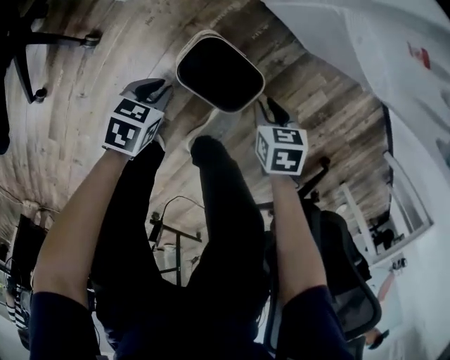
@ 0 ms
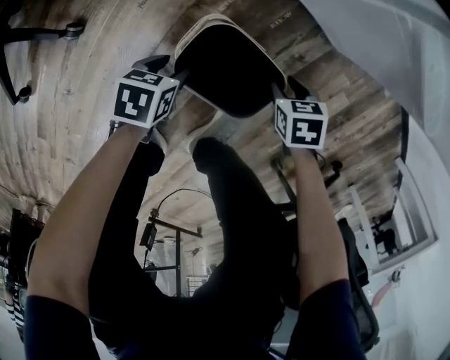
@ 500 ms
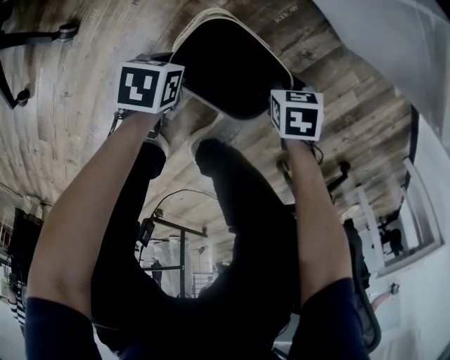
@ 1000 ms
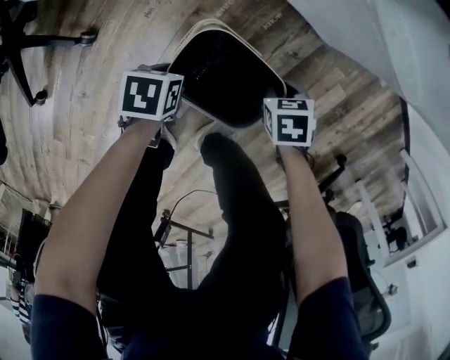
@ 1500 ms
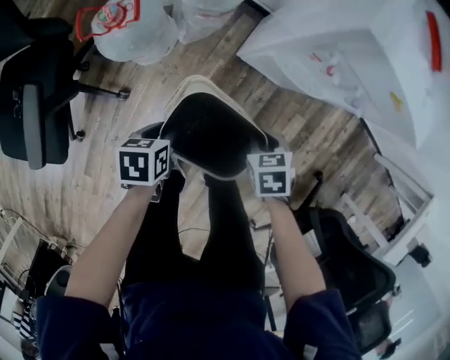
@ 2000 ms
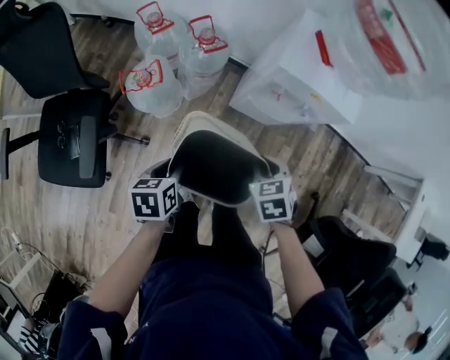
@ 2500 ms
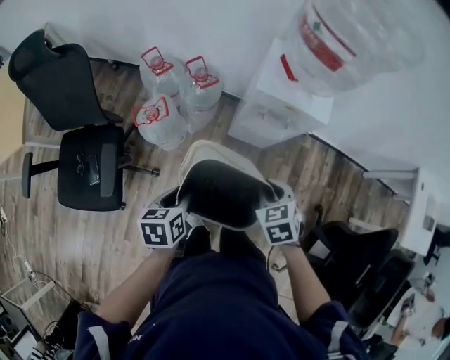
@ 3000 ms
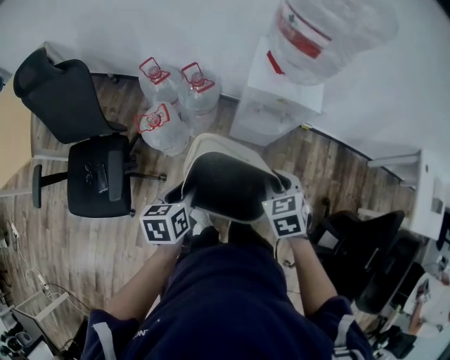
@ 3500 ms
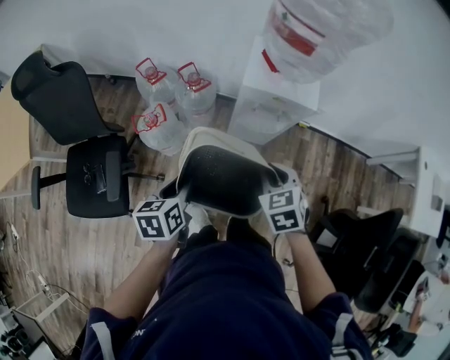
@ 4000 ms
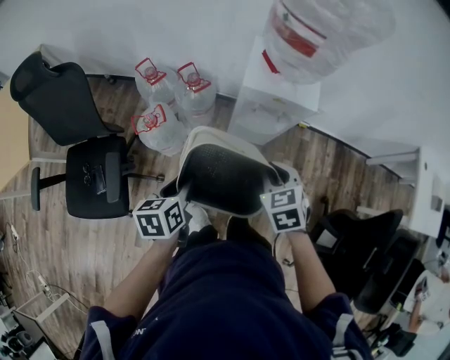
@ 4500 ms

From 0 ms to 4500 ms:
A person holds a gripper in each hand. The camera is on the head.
From 0 ms to 2000 ms: Both grippers move upward, about 25 cm. The left gripper opens, then closes once more.
From 2000 ms to 4500 ms: Both grippers move upward, about 40 cm. The left gripper changes its angle by approximately 20 degrees; the right gripper rotates some 20 degrees.

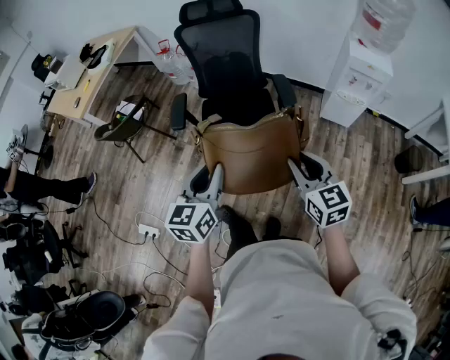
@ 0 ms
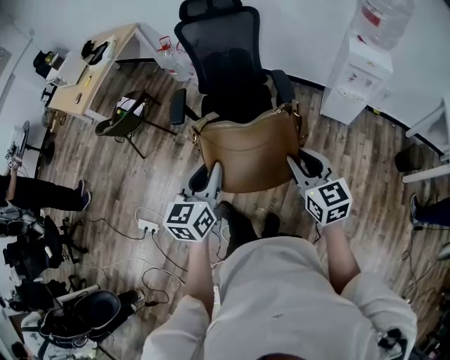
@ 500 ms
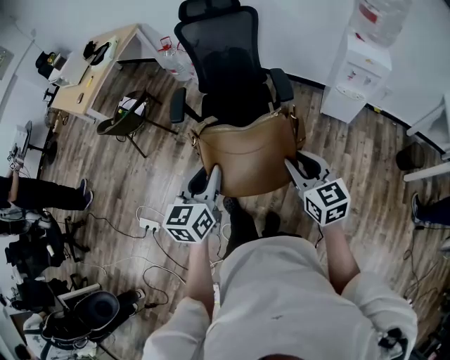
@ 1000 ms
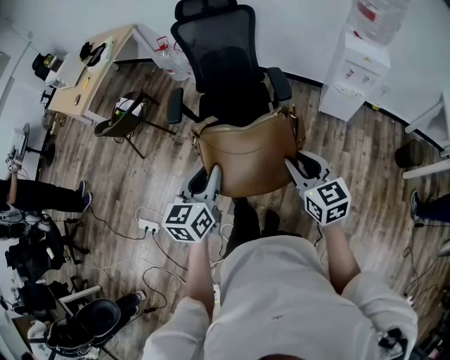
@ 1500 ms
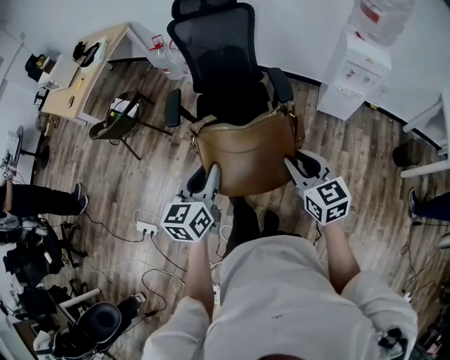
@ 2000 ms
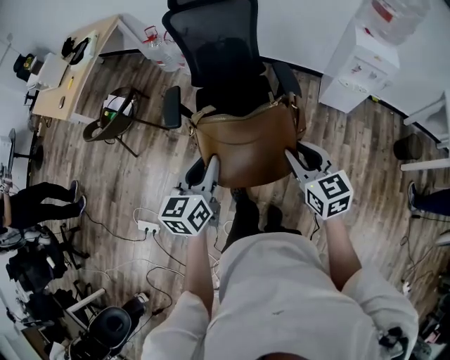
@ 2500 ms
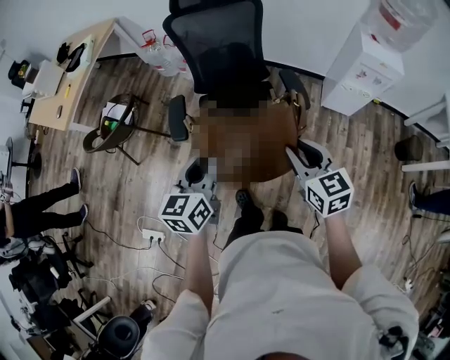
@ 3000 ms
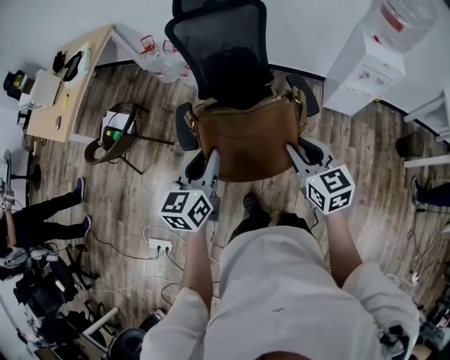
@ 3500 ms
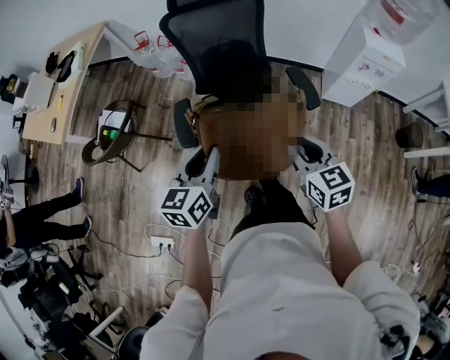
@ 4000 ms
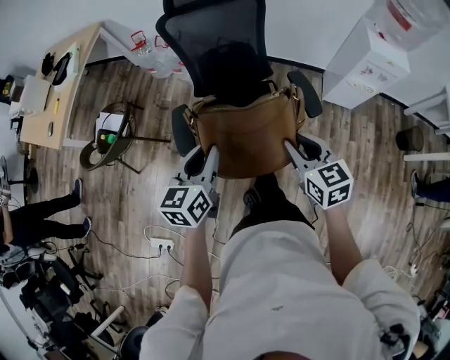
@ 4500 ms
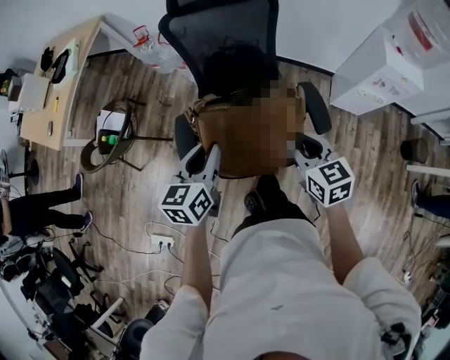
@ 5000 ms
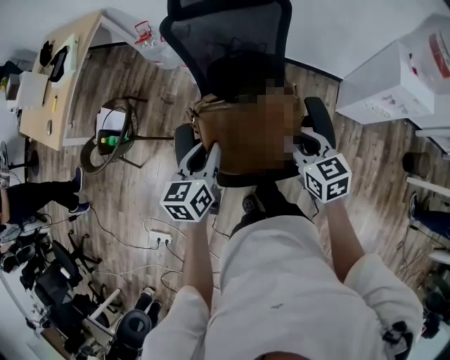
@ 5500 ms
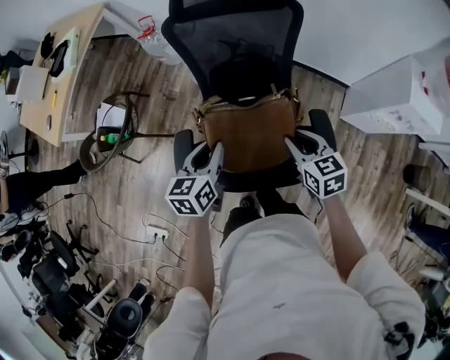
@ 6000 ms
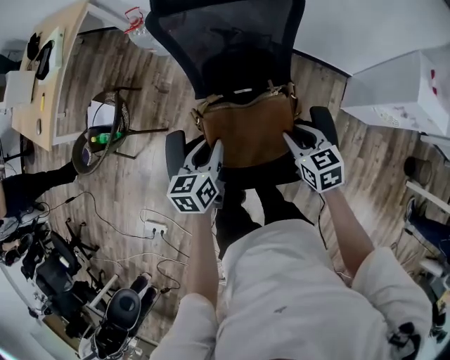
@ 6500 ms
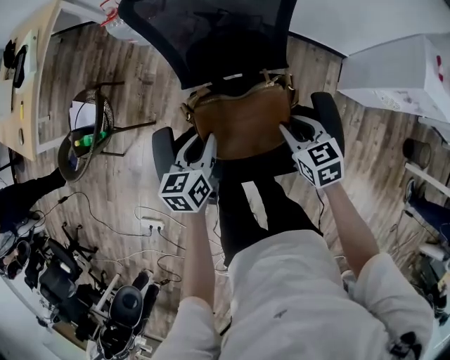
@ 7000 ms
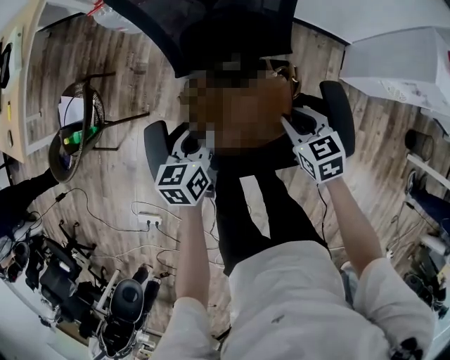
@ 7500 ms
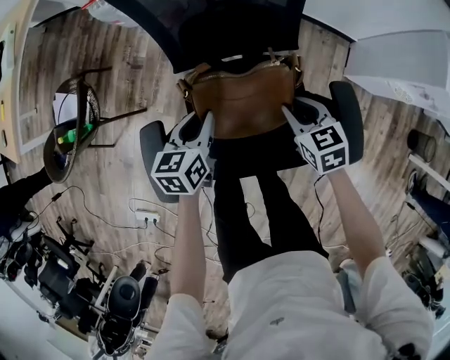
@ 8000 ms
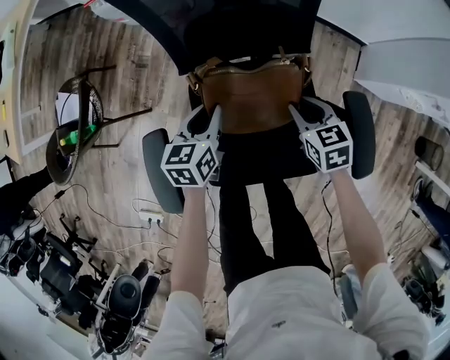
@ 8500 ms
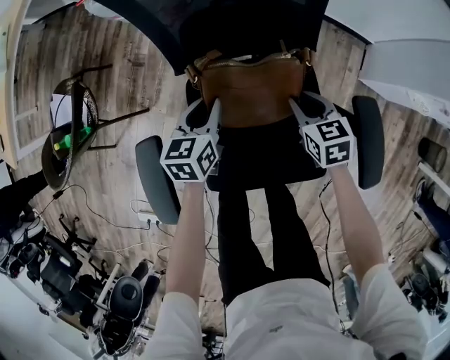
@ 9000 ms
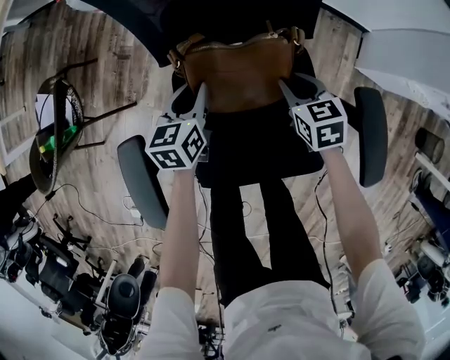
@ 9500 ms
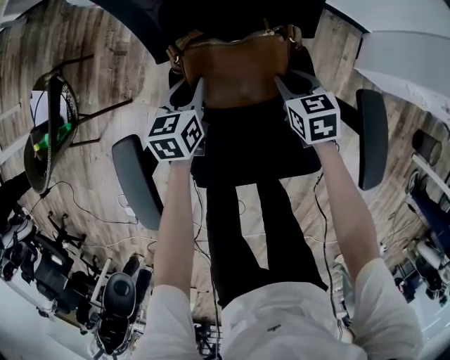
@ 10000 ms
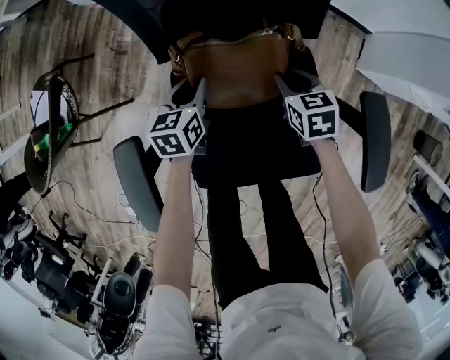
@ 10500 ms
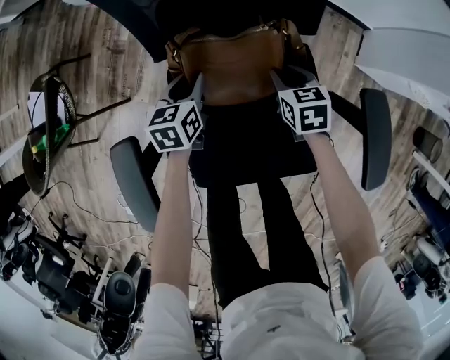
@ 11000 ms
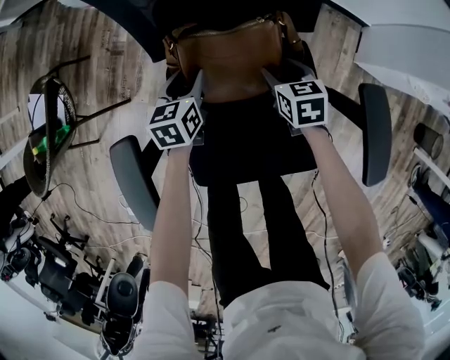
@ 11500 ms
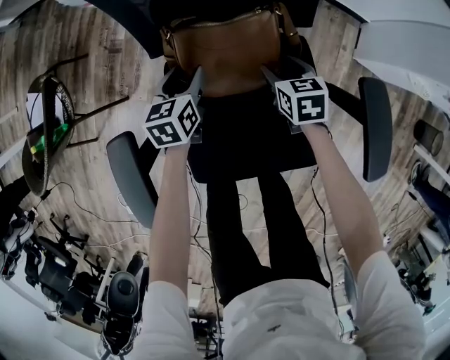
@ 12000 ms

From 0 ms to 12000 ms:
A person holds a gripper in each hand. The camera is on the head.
From 0 ms to 2000 ms: The grippers move only a little.
From 2000 ms to 4000 ms: Both grippers move forward and to the left, about 20 cm.
From 4000 ms to 6000 ms: The two grippers go approximately 25 cm forward.
From 6000 ms to 8000 ms: Both grippers travel together downward, about 20 cm.
From 8000 ms to 10000 ms: The grippers both shift downward and forward by some 15 cm.
From 10000 ms to 12000 ms: The right gripper opens. Meanwhile the left gripper opens up.

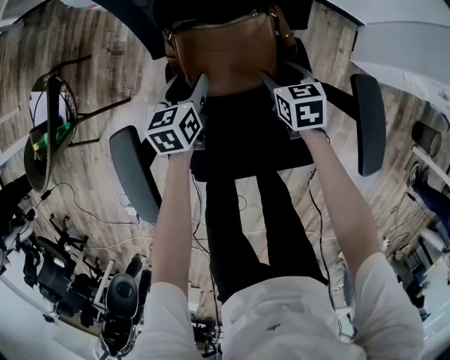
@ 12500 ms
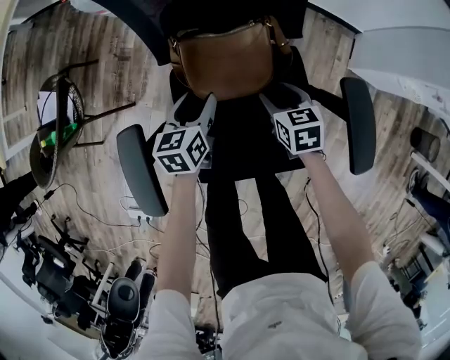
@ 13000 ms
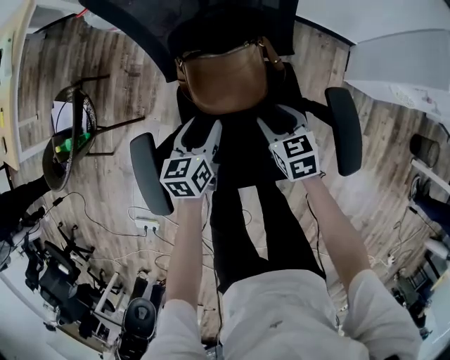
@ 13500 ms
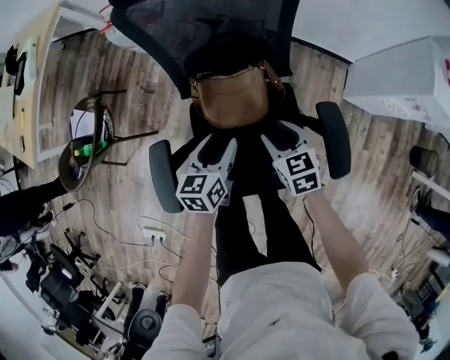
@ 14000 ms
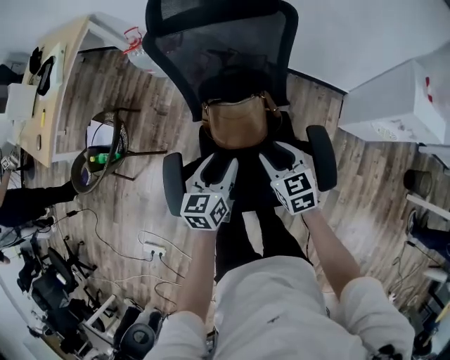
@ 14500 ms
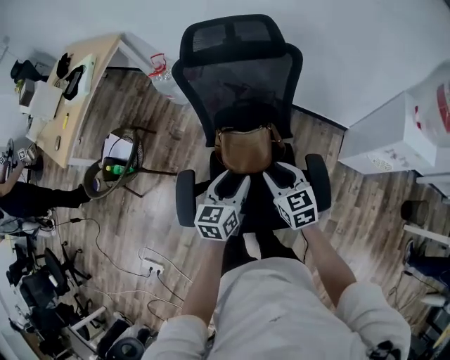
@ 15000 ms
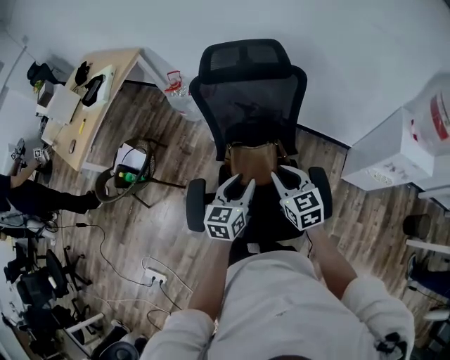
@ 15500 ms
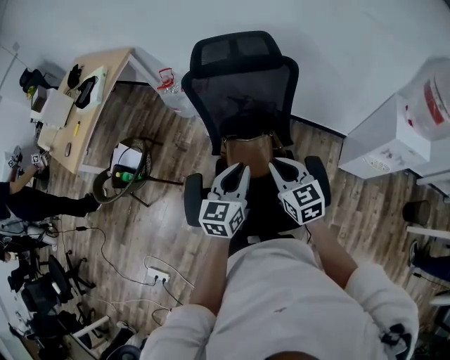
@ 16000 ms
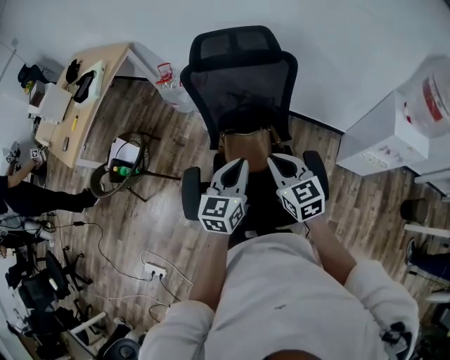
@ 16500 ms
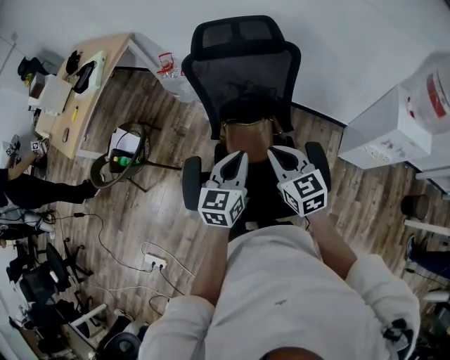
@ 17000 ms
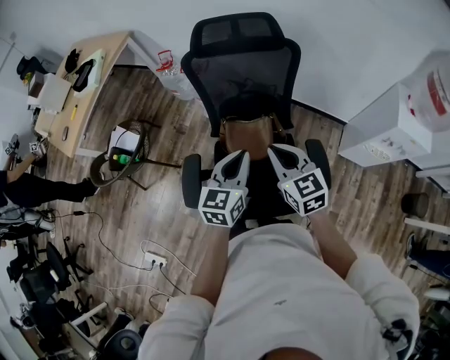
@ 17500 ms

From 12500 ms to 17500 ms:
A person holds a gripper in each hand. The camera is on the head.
From 12500 ms to 15000 ms: Both grippers travel together upward, roughly 35 cm. The right gripper changes its angle by about 30 degrees, and closes its fingers.
From 15000 ms to 17500 ms: The two grippers go roughly 10 cm upward. The right gripper closes, while the left gripper closes.

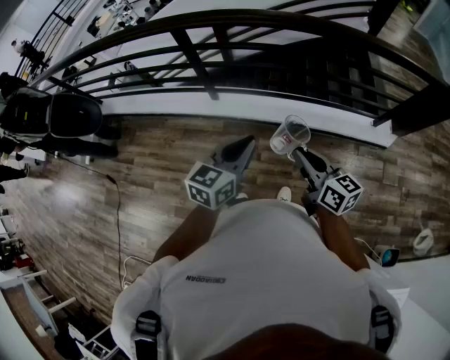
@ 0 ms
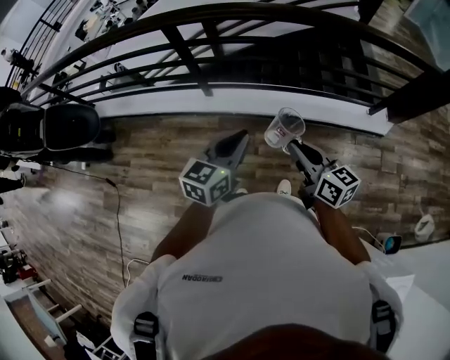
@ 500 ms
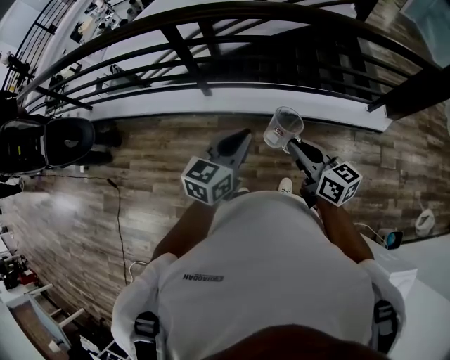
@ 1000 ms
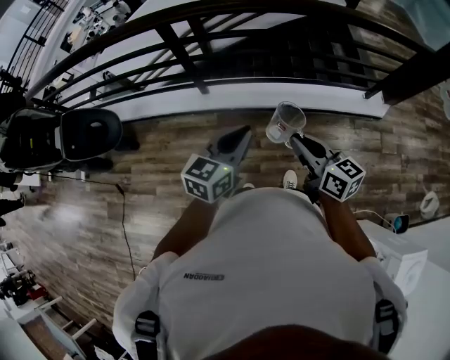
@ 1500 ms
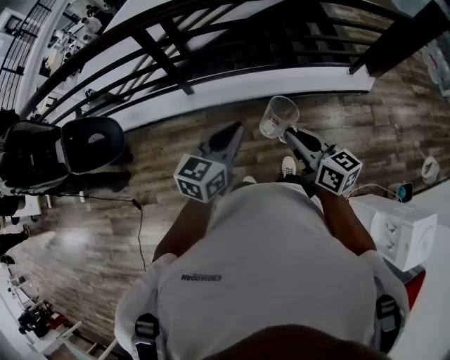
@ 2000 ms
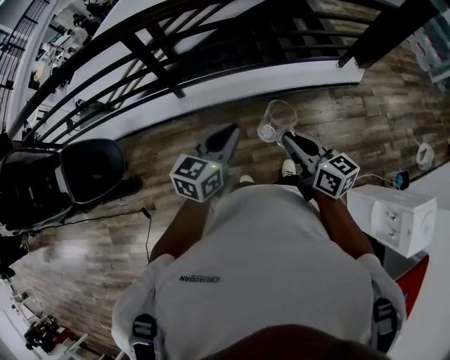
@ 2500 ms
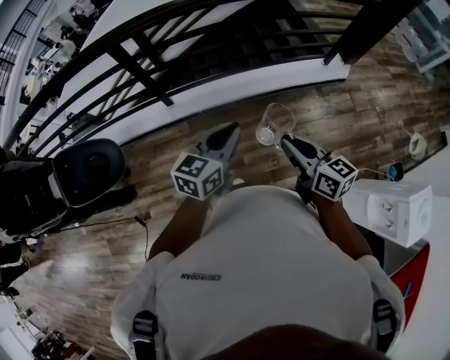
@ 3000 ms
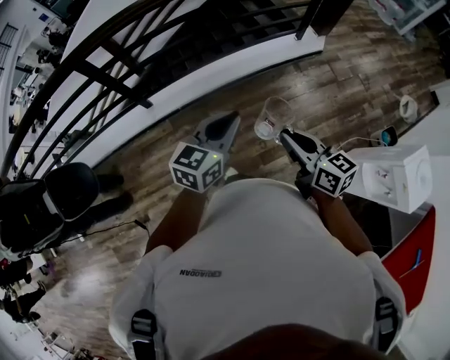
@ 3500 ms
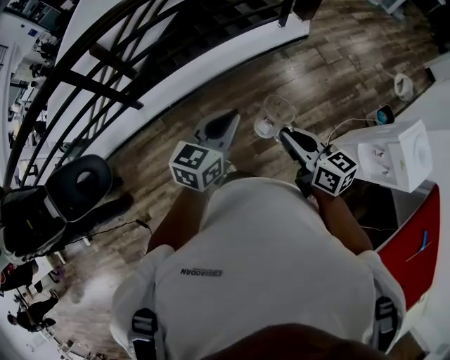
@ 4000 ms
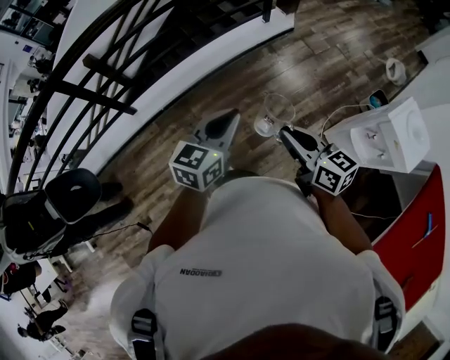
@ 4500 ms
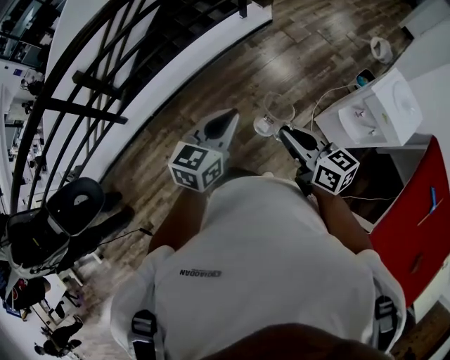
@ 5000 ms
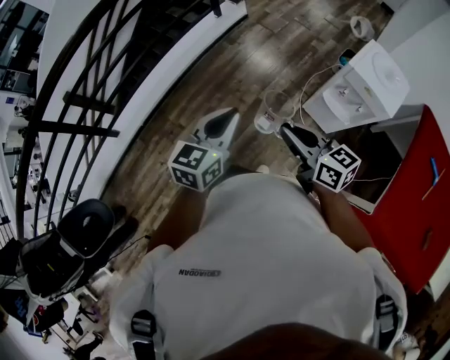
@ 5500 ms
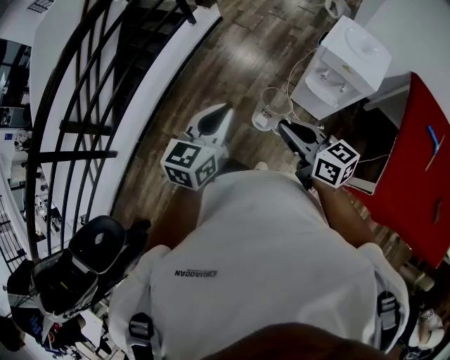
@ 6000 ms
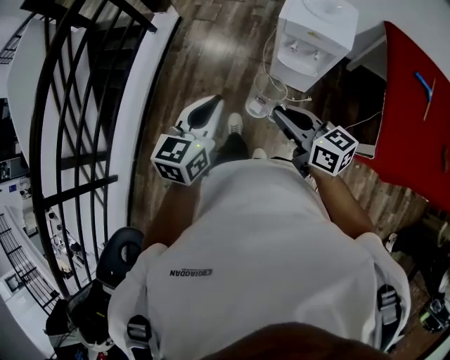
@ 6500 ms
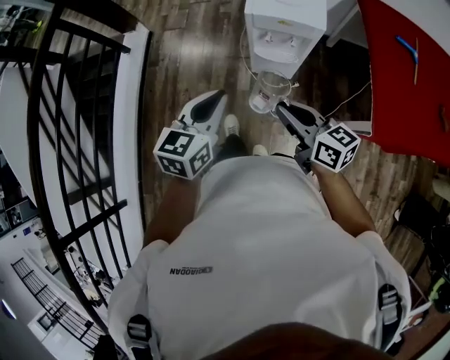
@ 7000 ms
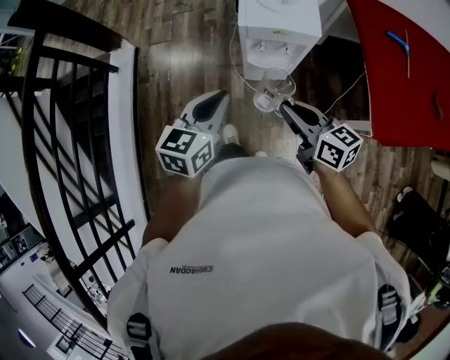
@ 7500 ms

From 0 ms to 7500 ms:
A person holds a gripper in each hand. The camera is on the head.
From 0 ms to 2000 ms: Both grippers move to the left, approximately 5 cm.
From 2000 ms to 4000 ms: The left gripper moves to the right, approximately 20 cm, and swivels about 20 degrees. The right gripper shifts approximately 20 cm to the right and backward, and rotates about 20 degrees.
From 4000 ms to 5500 ms: The grippers both shift to the right and backward by approximately 25 cm.
From 5500 ms to 7500 ms: The left gripper shifts by approximately 25 cm, and changes its angle by roughly 40 degrees, while the right gripper shifts by about 20 cm, and swivels roughly 40 degrees.
